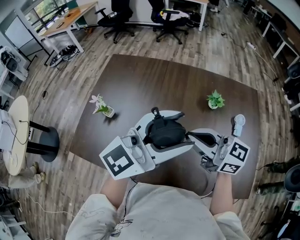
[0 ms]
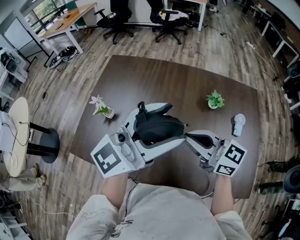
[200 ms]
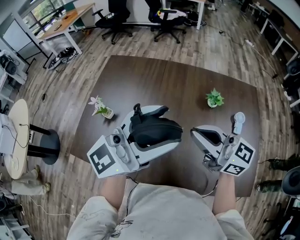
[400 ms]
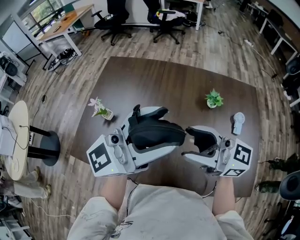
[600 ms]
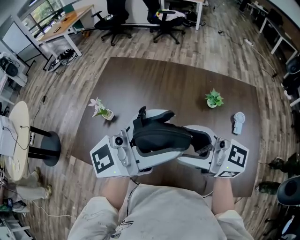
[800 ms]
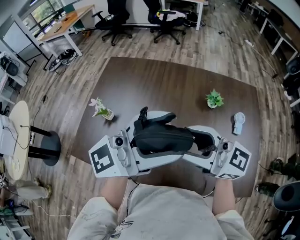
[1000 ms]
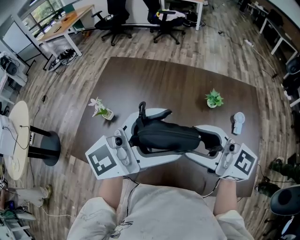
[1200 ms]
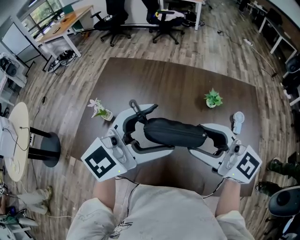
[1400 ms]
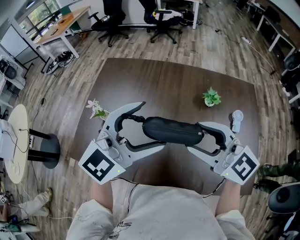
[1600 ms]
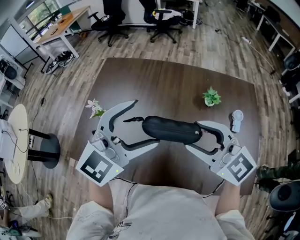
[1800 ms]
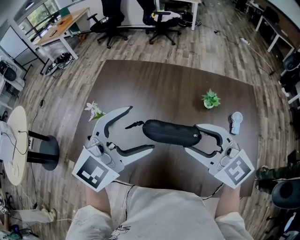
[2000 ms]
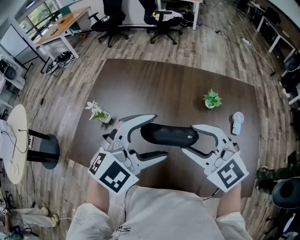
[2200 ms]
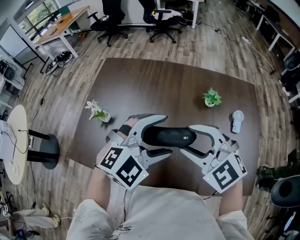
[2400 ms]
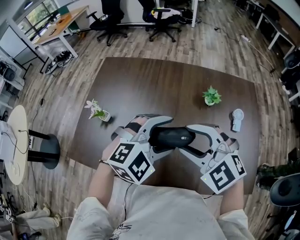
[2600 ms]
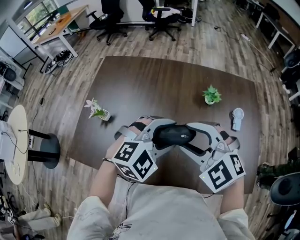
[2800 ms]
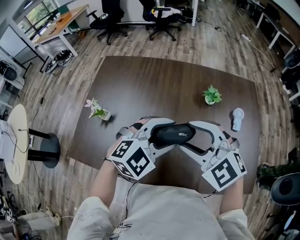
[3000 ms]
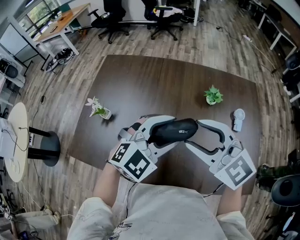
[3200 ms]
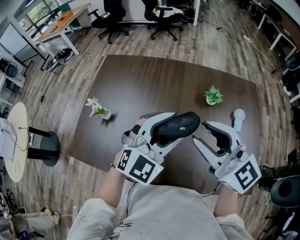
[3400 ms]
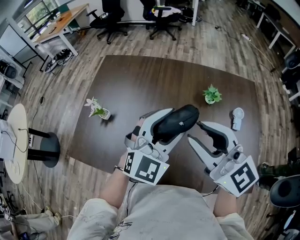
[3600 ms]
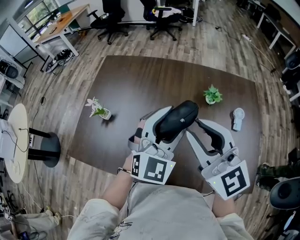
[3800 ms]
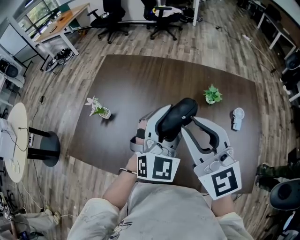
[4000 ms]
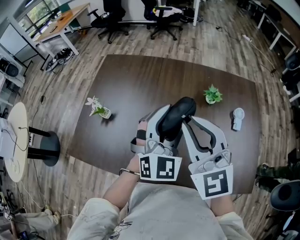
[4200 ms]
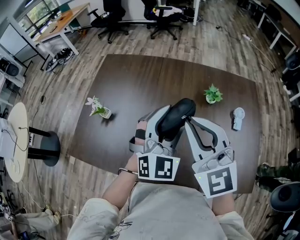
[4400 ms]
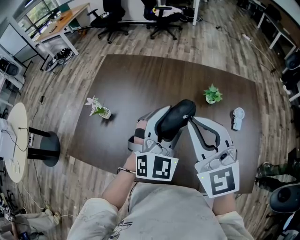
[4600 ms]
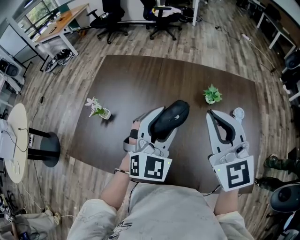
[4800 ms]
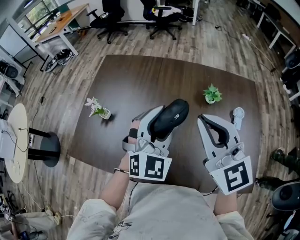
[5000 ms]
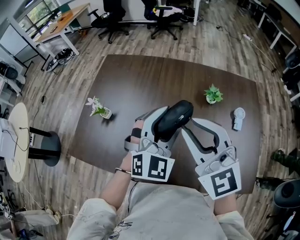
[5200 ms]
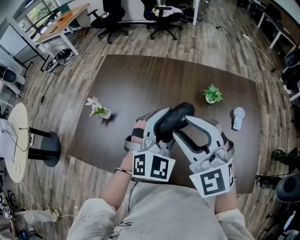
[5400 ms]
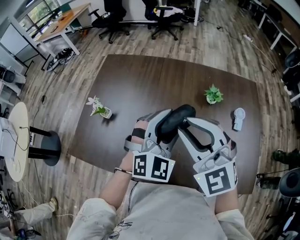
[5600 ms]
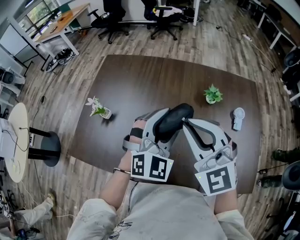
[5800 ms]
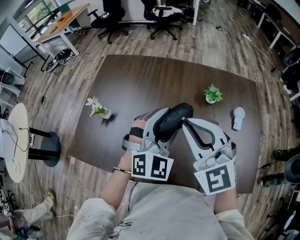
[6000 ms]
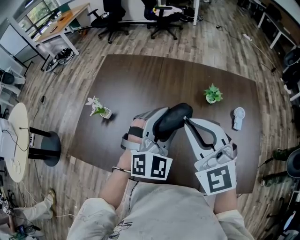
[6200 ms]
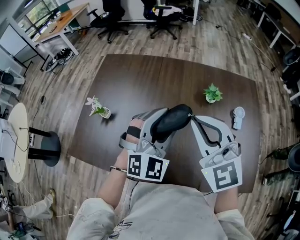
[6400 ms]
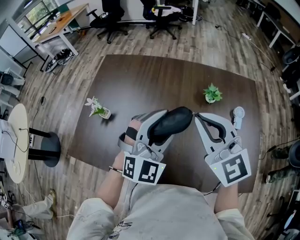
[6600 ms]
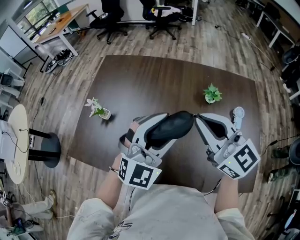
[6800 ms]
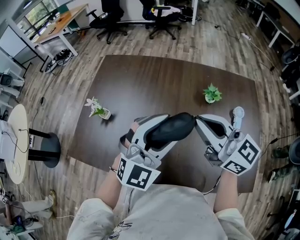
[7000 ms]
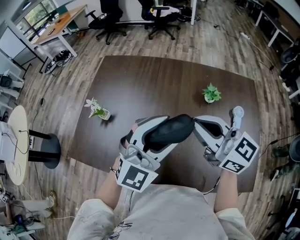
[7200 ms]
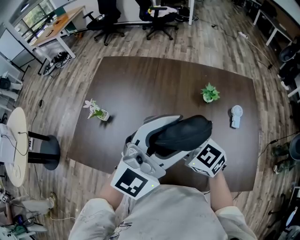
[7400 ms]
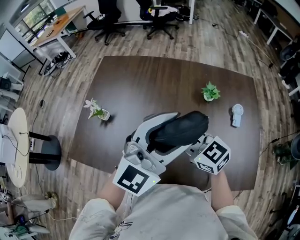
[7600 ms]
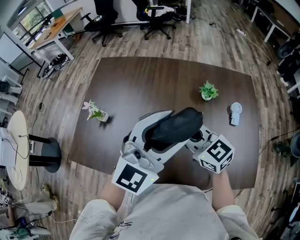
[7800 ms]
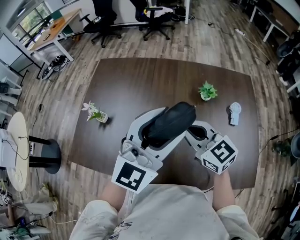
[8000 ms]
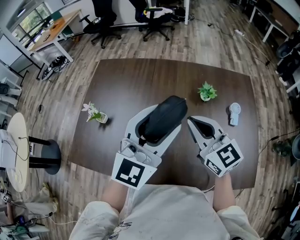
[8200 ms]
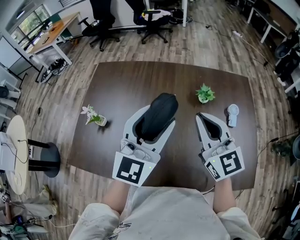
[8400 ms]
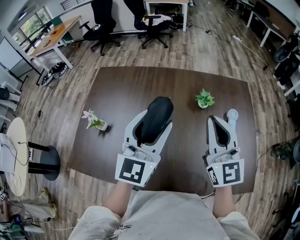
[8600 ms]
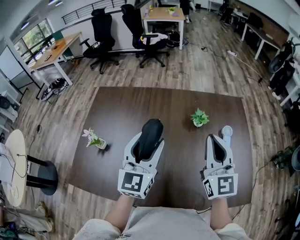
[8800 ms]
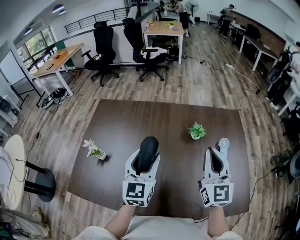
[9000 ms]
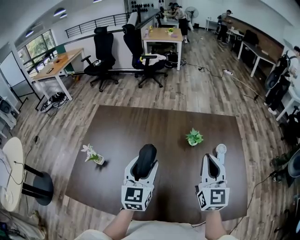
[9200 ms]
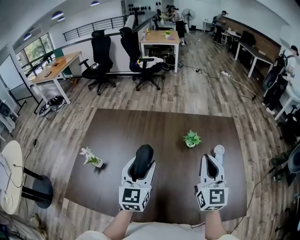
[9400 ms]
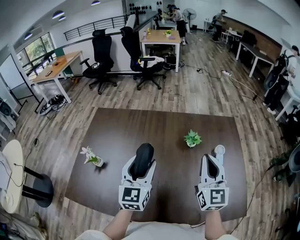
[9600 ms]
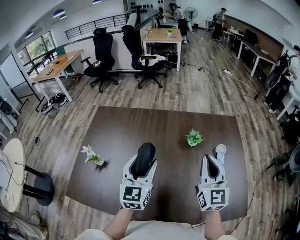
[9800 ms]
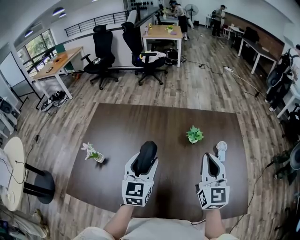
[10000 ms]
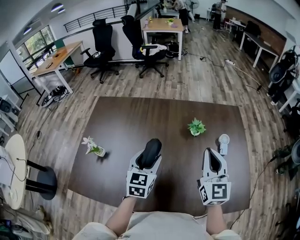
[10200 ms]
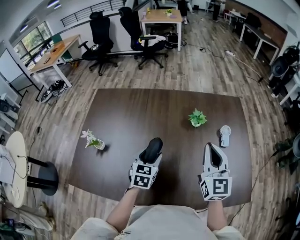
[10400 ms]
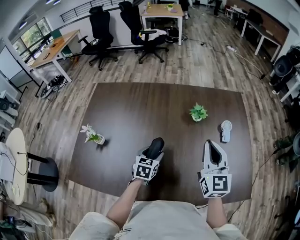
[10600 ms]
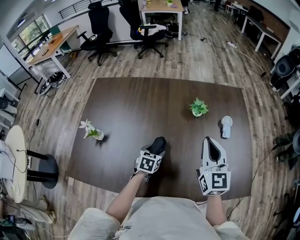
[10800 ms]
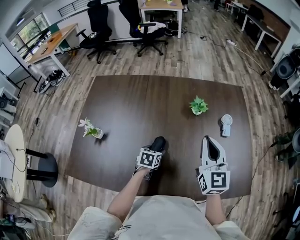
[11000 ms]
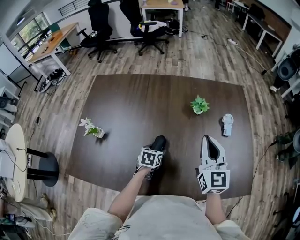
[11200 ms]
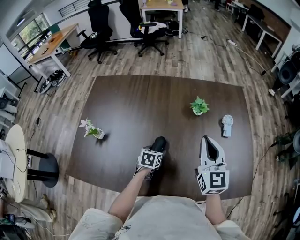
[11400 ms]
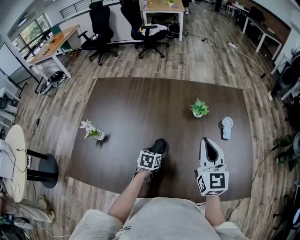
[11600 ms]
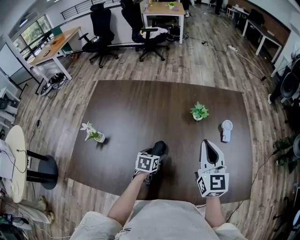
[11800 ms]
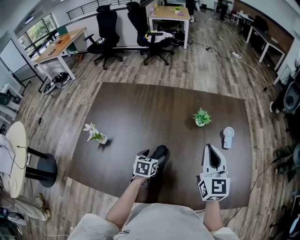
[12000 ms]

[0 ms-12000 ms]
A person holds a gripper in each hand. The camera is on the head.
0 ms to 1600 ms: The left gripper moves some 5 cm, rotates approximately 30 degrees, and opens its fingers. Meanwhile the right gripper changes place by approximately 5 cm, swivels some 30 degrees, and opens up.
1600 ms to 3000 ms: The left gripper travels downward and to the right by some 15 cm, turns by some 20 degrees, and closes; the right gripper moves downward, approximately 5 cm, and swivels approximately 30 degrees.
3000 ms to 4400 ms: The right gripper travels upward by about 5 cm, turns by roughly 40 degrees, and closes up. Meanwhile the left gripper changes place by roughly 5 cm, and rotates roughly 40 degrees.
4400 ms to 6000 ms: The right gripper opens and closes again.
6000 ms to 7600 ms: The right gripper goes some 10 cm downward, and swivels about 40 degrees. Meanwhile the left gripper moves upward and backward, approximately 10 cm, and turns by some 40 degrees.
7600 ms to 9000 ms: The left gripper heads downward, forward and to the left, covering some 15 cm, and rotates some 40 degrees; the right gripper shifts roughly 20 cm to the right and upward, and rotates approximately 60 degrees.
9000 ms to 10400 ms: The left gripper travels downward by some 15 cm, and turns by approximately 30 degrees.
10400 ms to 12000 ms: The left gripper travels downward by approximately 10 cm, and rotates about 20 degrees.

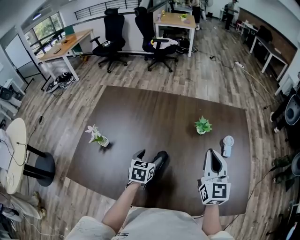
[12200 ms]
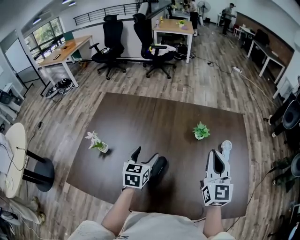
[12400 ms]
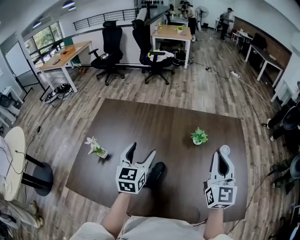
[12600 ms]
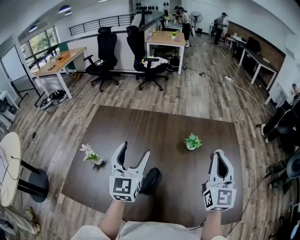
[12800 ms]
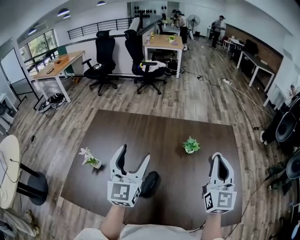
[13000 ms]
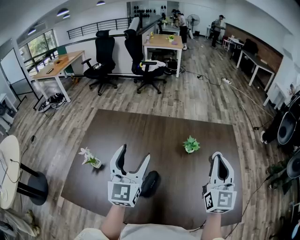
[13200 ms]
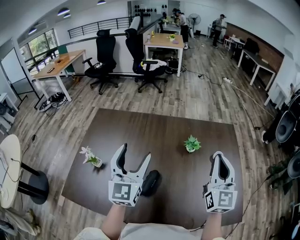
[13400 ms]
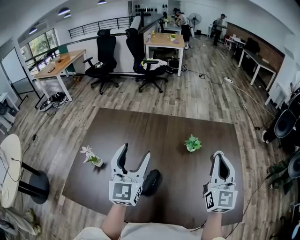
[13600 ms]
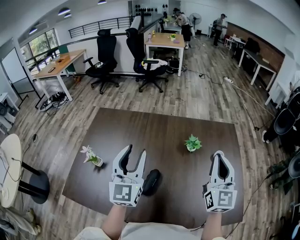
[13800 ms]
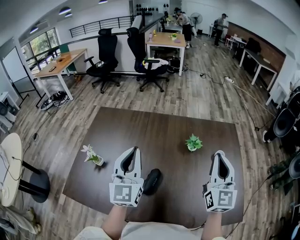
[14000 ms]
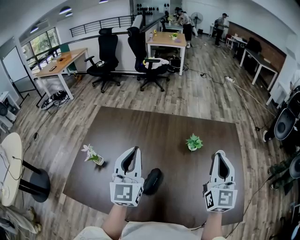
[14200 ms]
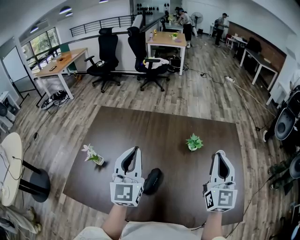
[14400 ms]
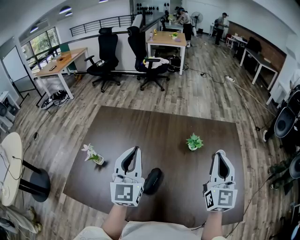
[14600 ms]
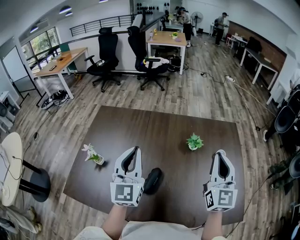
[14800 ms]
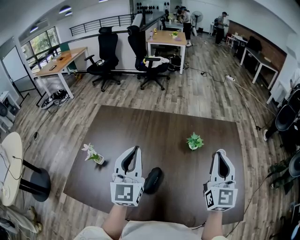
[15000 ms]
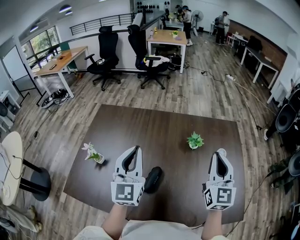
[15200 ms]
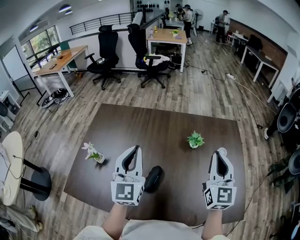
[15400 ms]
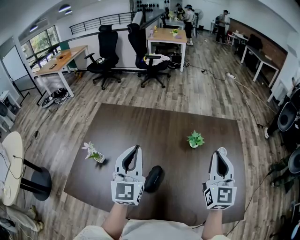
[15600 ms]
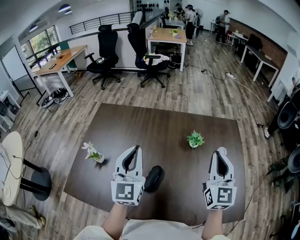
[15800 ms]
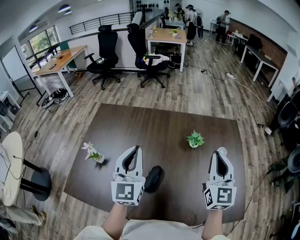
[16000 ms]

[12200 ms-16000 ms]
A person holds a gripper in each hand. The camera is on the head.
12200 ms to 13400 ms: The right gripper is displaced upward by roughly 10 cm. The left gripper travels upward by some 25 cm, and angles its fingers upward, by about 50 degrees.
13400 ms to 14800 ms: The left gripper closes.
14800 ms to 16000 ms: The grippers move only a little.

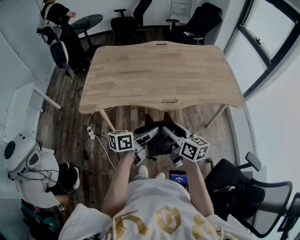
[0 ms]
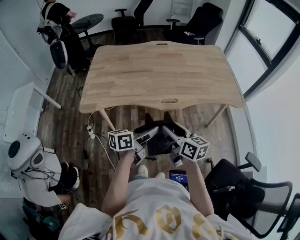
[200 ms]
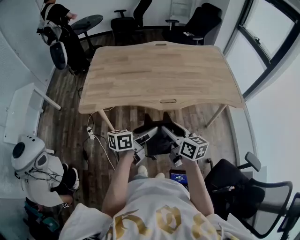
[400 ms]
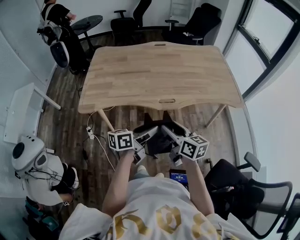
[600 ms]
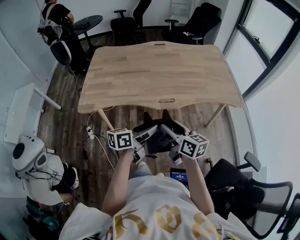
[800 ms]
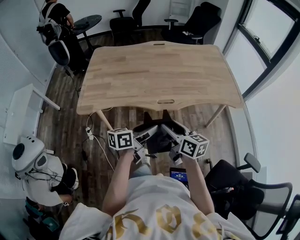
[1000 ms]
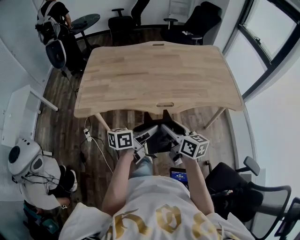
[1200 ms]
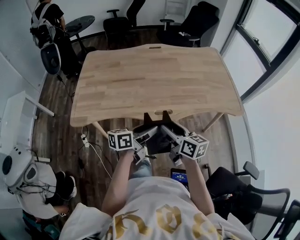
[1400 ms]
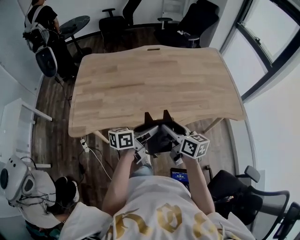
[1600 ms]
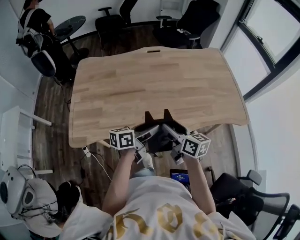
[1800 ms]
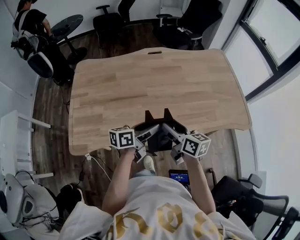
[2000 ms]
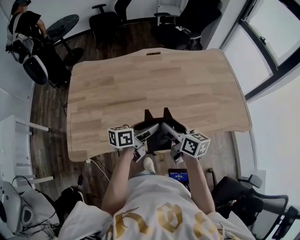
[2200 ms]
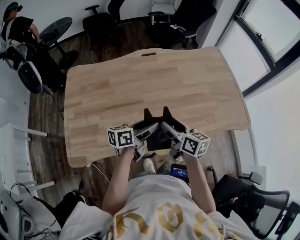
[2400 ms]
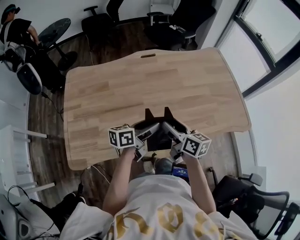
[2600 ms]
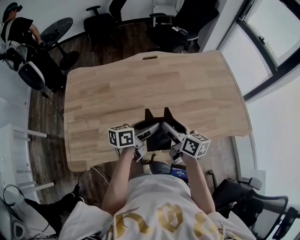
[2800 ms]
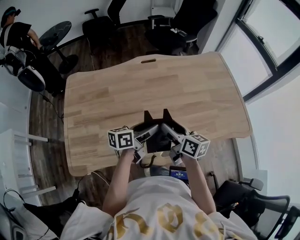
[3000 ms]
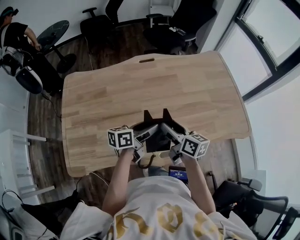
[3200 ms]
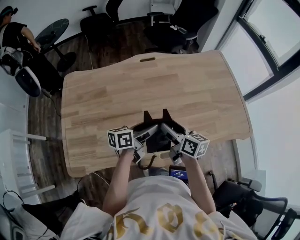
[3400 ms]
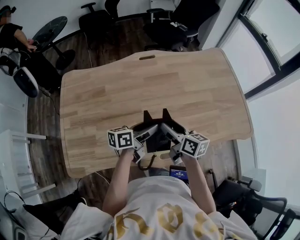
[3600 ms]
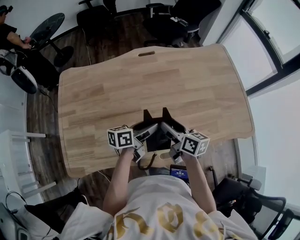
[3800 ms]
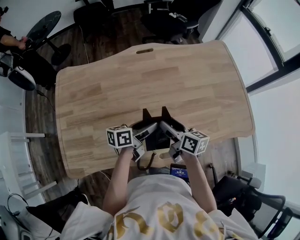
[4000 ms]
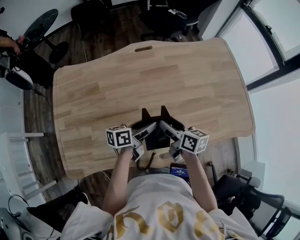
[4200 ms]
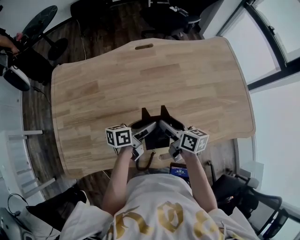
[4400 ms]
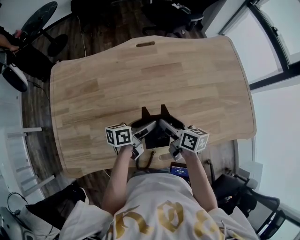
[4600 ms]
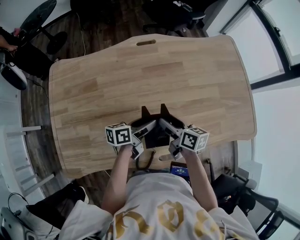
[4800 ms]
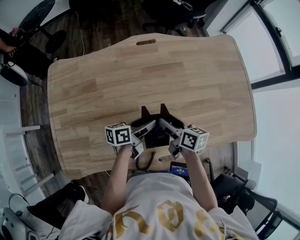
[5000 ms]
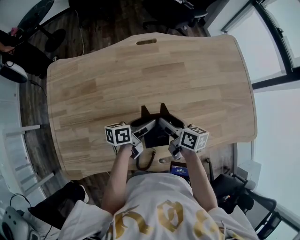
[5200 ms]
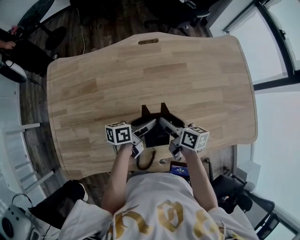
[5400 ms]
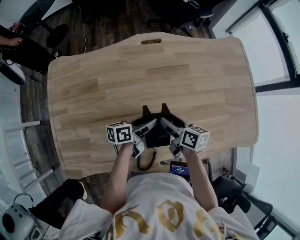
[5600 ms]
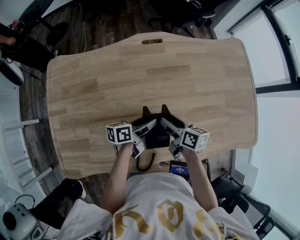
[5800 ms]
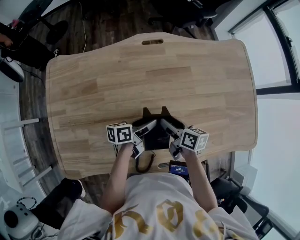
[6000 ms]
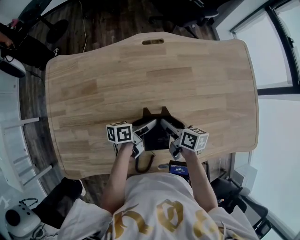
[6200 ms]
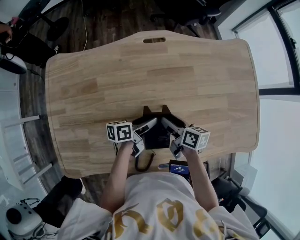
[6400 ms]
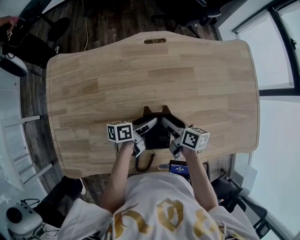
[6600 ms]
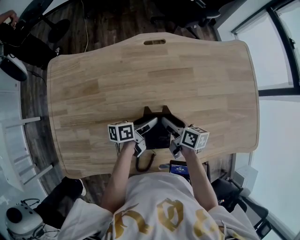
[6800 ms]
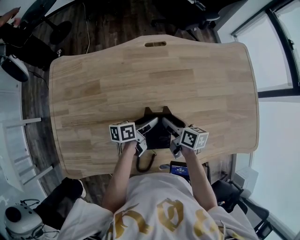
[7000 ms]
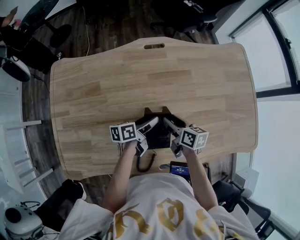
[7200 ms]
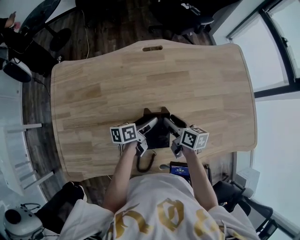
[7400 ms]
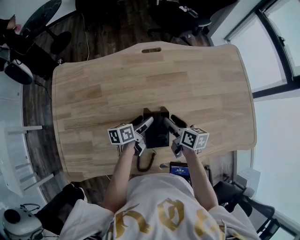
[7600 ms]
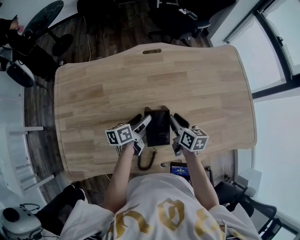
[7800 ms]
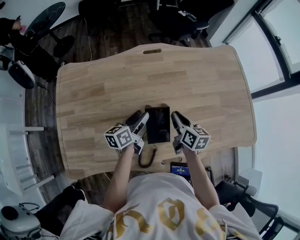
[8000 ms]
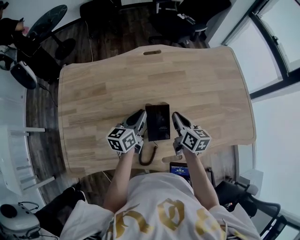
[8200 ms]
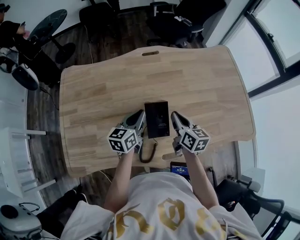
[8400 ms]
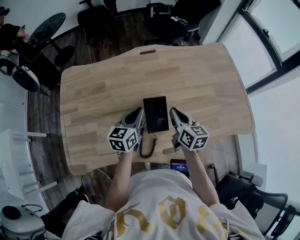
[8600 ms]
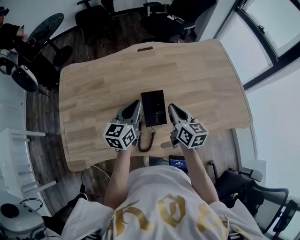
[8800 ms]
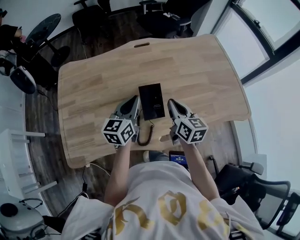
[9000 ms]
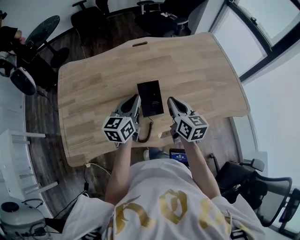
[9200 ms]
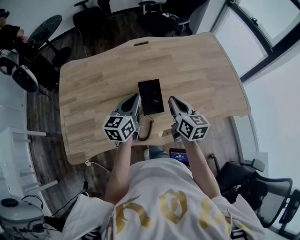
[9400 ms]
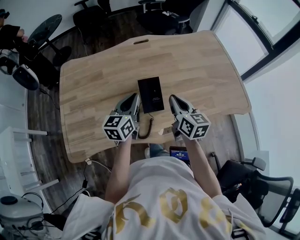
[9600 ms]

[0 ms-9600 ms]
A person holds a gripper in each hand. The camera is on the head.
0 ms to 1600 ms: Both grippers travel together forward, approximately 20 cm.
1600 ms to 3200 ms: Both grippers move forward, some 25 cm.
3200 ms to 4800 ms: Both grippers move downward and forward, roughly 15 cm.
4800 ms to 6400 ms: The grippers both shift forward and downward by approximately 10 cm.
6400 ms to 8000 ms: Both grippers travel together upward, some 5 cm. The left gripper turns by approximately 30 degrees; the right gripper swivels roughly 20 degrees, and closes up.
8000 ms to 9600 ms: The two grippers go some 20 cm backward and upward. The left gripper turns by roughly 30 degrees, and closes.
